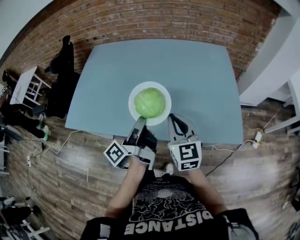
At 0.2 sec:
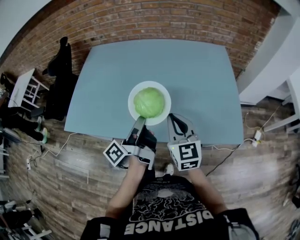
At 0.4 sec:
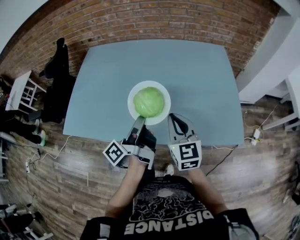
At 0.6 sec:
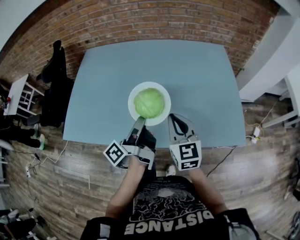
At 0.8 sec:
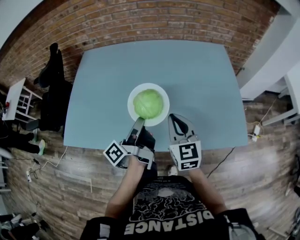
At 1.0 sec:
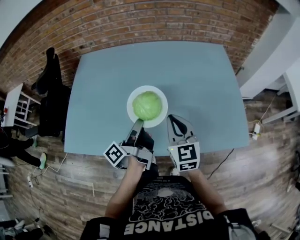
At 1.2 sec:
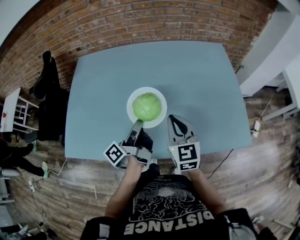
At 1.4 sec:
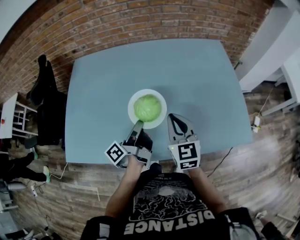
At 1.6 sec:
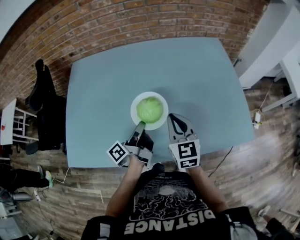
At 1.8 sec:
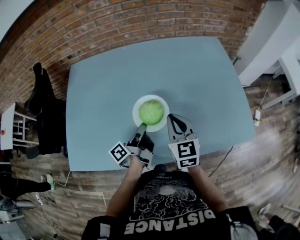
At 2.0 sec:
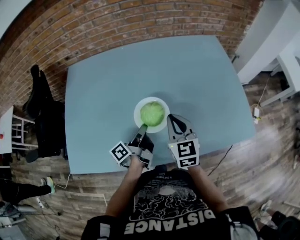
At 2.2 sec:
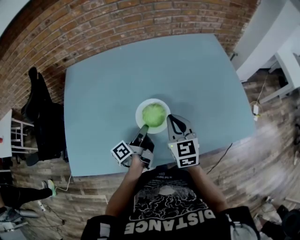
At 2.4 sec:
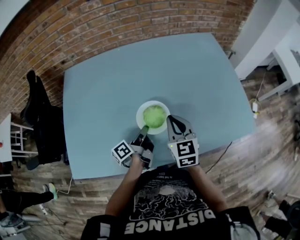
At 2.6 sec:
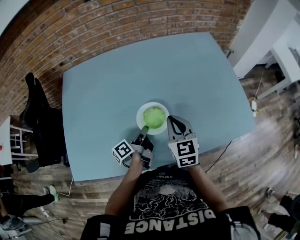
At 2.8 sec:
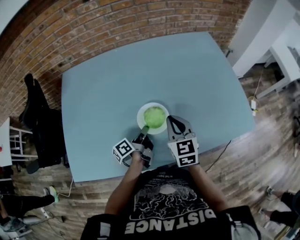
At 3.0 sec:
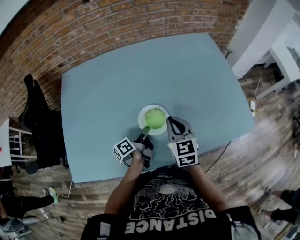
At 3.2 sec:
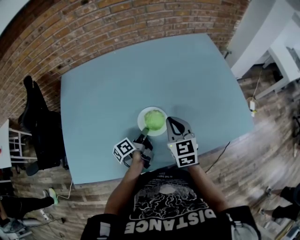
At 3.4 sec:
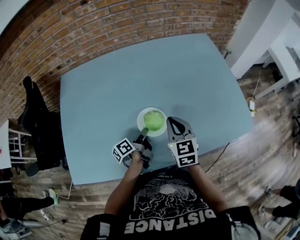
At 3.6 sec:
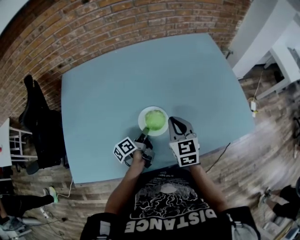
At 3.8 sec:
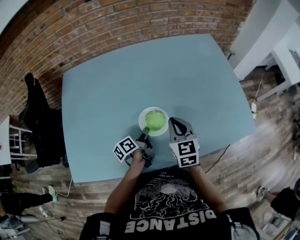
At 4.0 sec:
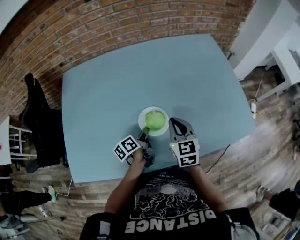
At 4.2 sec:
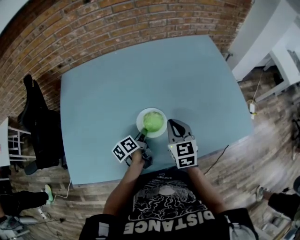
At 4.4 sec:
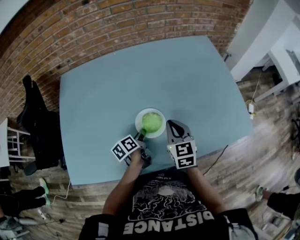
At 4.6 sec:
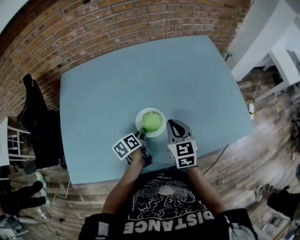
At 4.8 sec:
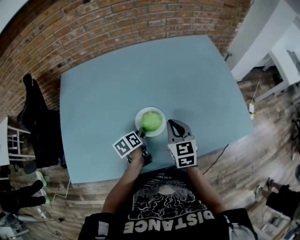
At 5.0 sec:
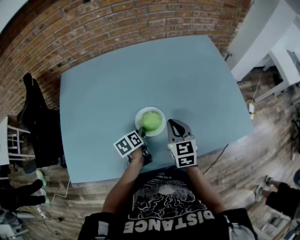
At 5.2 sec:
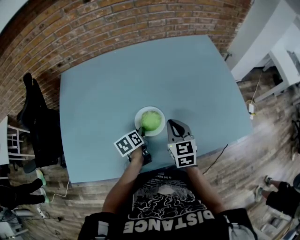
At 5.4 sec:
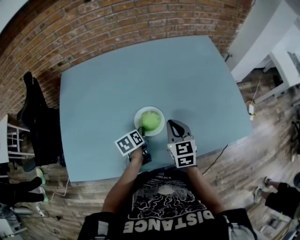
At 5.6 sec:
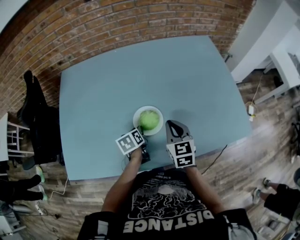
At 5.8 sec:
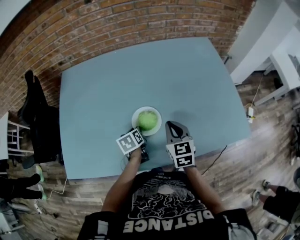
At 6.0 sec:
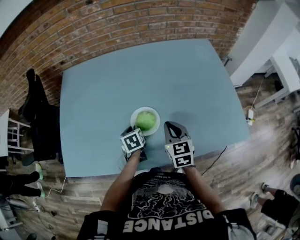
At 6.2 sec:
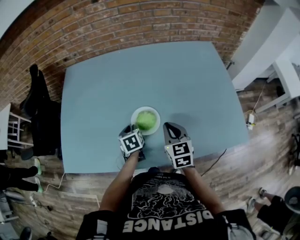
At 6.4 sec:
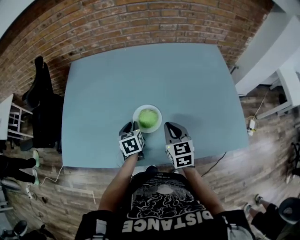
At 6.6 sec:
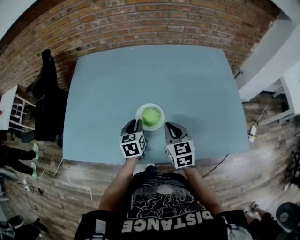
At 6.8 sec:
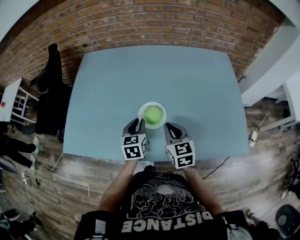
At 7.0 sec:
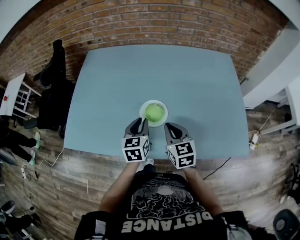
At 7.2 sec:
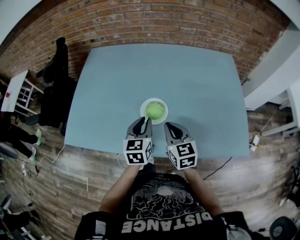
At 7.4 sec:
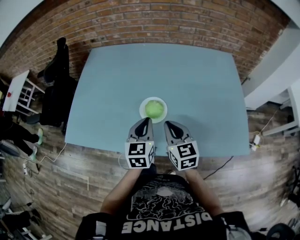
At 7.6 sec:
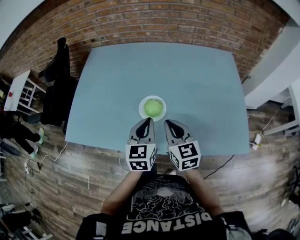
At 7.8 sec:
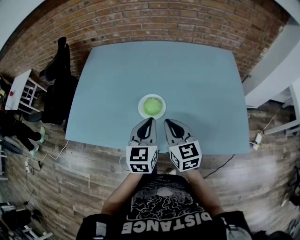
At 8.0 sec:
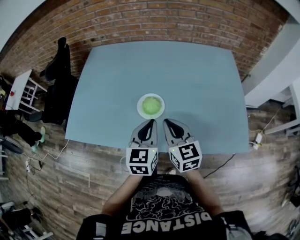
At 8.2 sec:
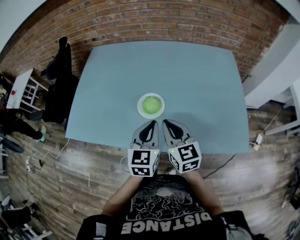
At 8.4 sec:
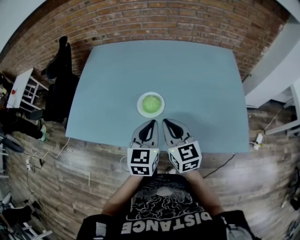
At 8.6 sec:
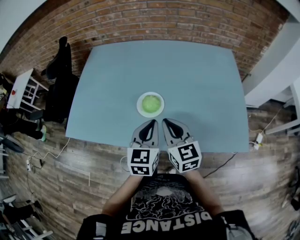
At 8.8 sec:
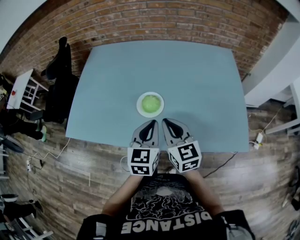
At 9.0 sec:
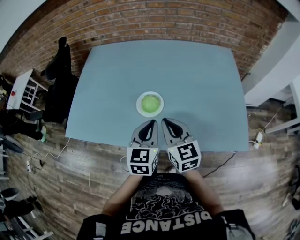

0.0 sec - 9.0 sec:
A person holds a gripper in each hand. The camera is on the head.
0.0 sec - 1.6 sec: The right gripper shifts by about 15 cm.
1.6 sec - 3.0 sec: The right gripper ends up some 5 cm from where it was.
6.0 sec - 7.6 sec: The right gripper heads upward, covering approximately 5 cm, and rotates about 20 degrees.

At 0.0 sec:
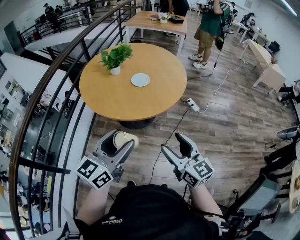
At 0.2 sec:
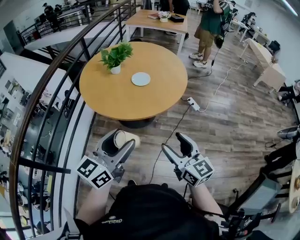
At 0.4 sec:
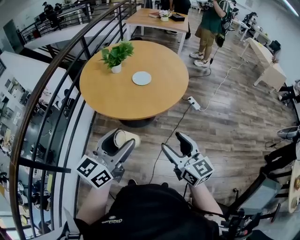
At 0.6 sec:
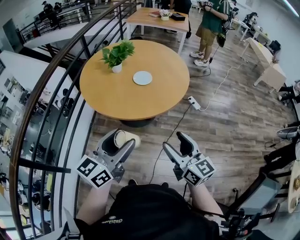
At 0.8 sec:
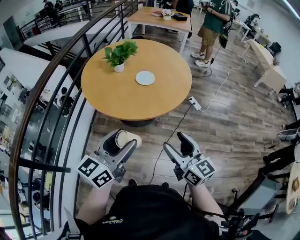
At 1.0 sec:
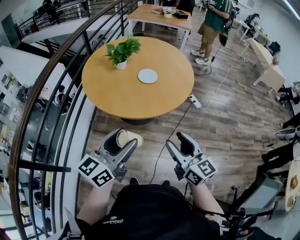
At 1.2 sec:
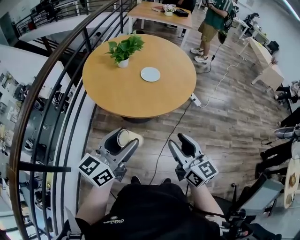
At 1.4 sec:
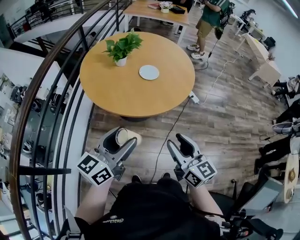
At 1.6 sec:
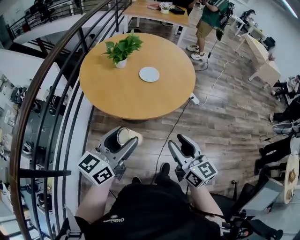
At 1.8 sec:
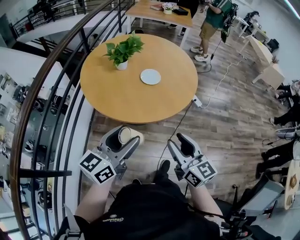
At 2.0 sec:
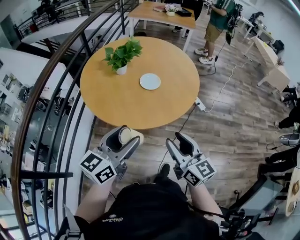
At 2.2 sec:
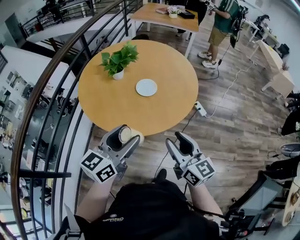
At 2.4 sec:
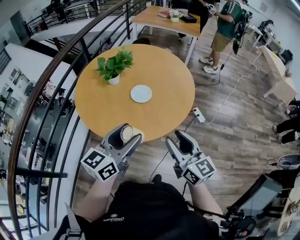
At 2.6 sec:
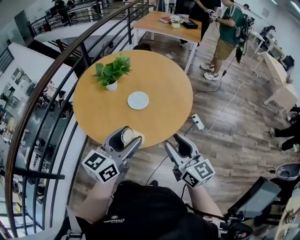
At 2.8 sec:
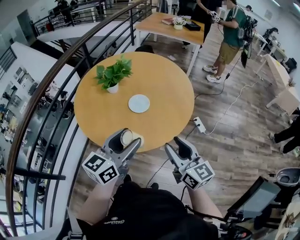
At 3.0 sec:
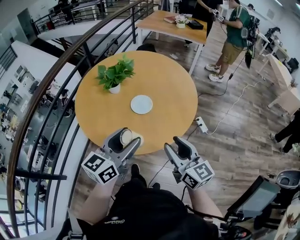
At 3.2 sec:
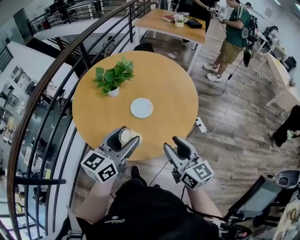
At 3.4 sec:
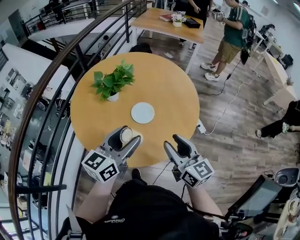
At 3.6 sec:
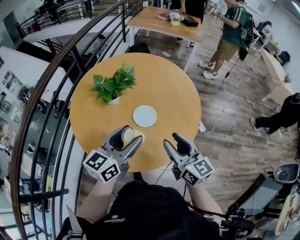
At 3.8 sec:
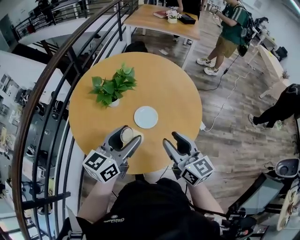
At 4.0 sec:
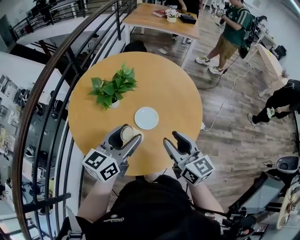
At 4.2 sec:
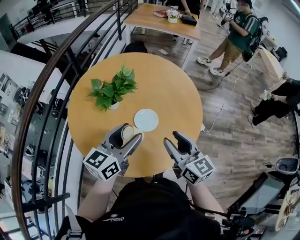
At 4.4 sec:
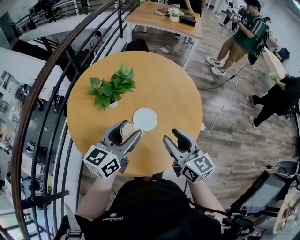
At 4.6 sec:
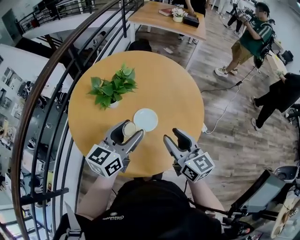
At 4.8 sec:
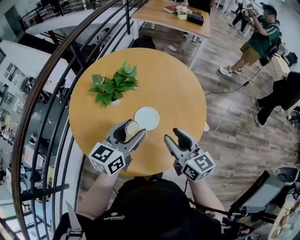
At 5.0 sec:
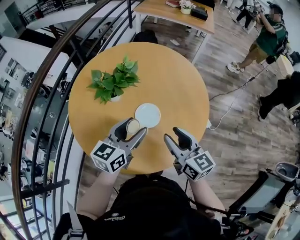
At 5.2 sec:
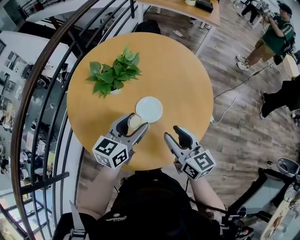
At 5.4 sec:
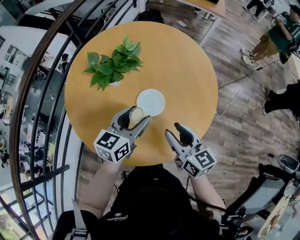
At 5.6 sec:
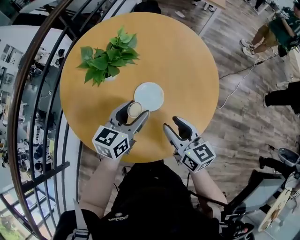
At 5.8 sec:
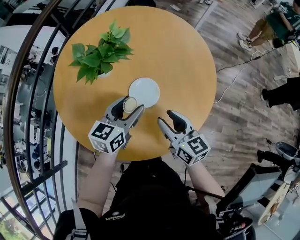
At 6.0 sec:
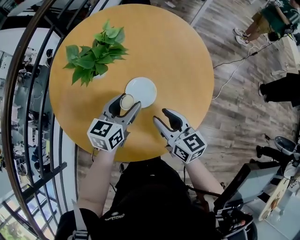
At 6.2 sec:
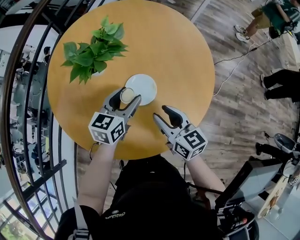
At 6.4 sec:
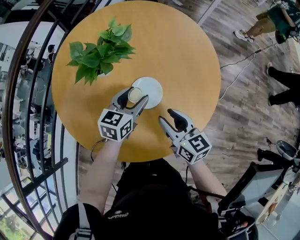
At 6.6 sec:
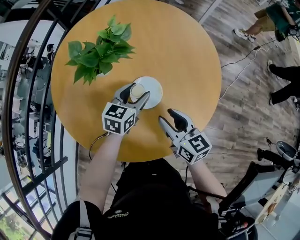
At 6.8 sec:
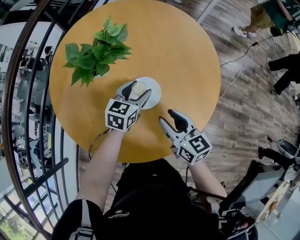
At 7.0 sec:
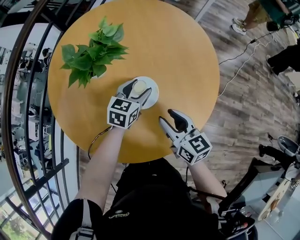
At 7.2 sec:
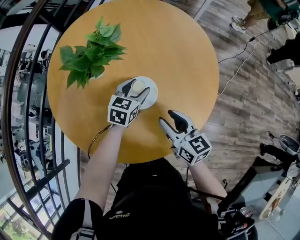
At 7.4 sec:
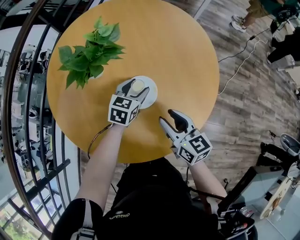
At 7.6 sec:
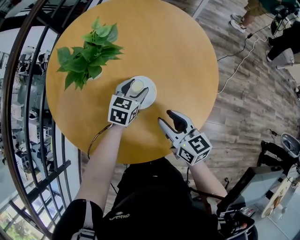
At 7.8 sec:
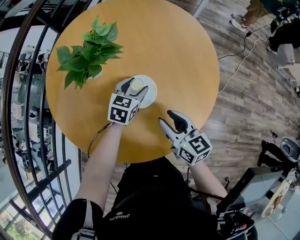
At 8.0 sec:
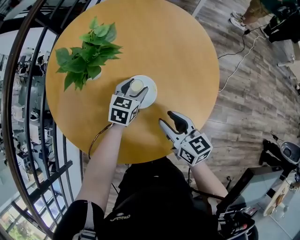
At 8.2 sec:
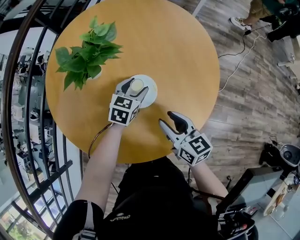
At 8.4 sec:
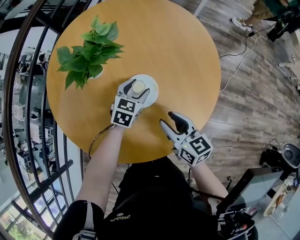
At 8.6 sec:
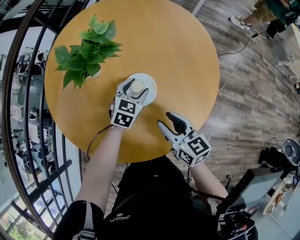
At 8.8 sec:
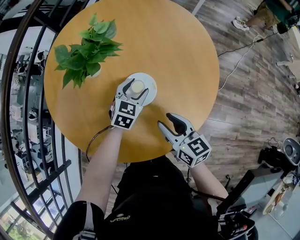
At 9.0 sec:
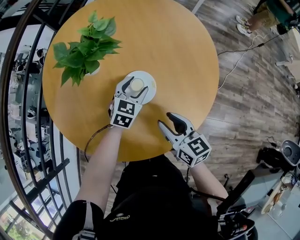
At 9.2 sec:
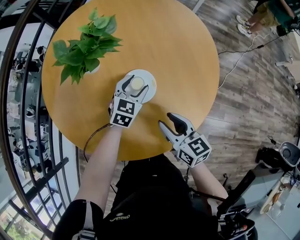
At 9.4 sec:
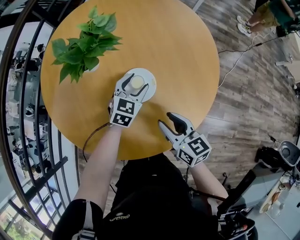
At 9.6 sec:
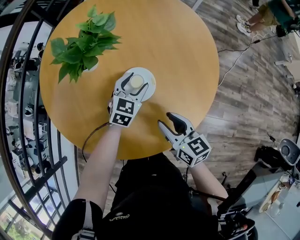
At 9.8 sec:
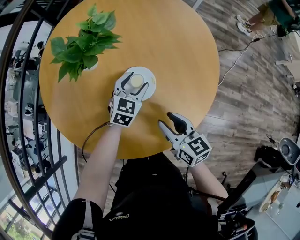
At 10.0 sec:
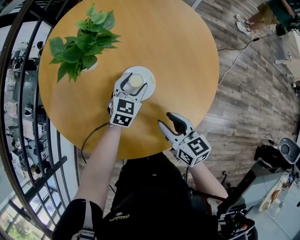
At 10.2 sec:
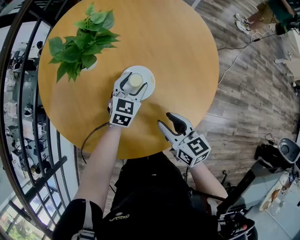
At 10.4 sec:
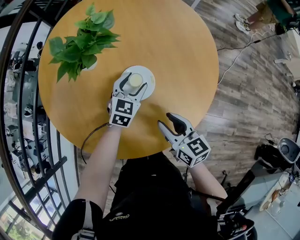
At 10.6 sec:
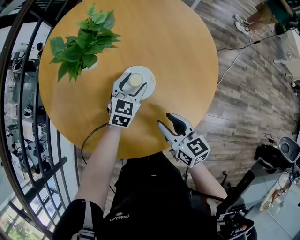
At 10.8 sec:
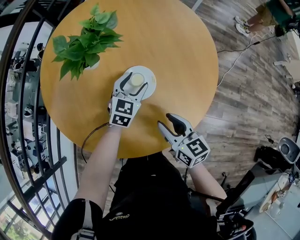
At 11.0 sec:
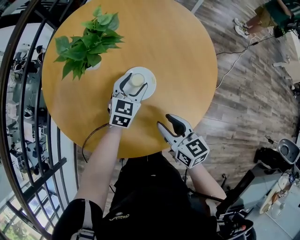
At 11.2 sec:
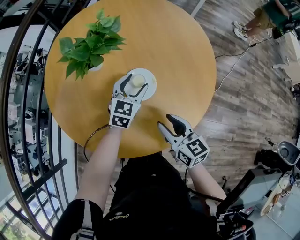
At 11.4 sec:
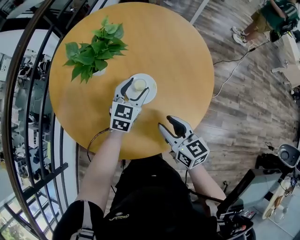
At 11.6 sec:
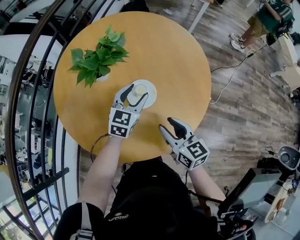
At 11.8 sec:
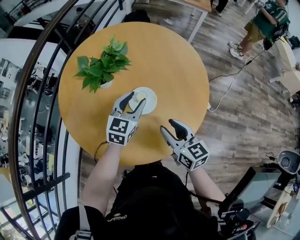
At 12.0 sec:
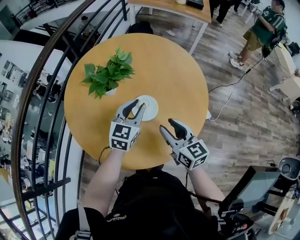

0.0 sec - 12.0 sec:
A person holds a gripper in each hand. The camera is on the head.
0.0 sec - 1.6 sec: The left gripper moves to the left and forward, roughly 15 cm; the right gripper heads to the left, covering about 10 cm, and closes up.
1.6 sec - 3.0 sec: Both grippers travel together forward and to the right, about 25 cm.
3.0 sec - 4.4 sec: The grippers both shift forward and to the left by approximately 20 cm.
4.4 sec - 6.0 sec: The two grippers go about 20 cm downward and forward.
6.0 sec - 7.6 sec: The left gripper goes about 15 cm downward, forward and to the right, and rotates some 20 degrees.
7.6 sec - 10.4 sec: The grippers make only small movements.
10.4 sec - 12.0 sec: The grippers both shift upward by some 15 cm. The left gripper closes.

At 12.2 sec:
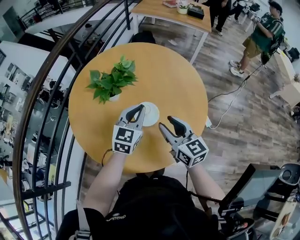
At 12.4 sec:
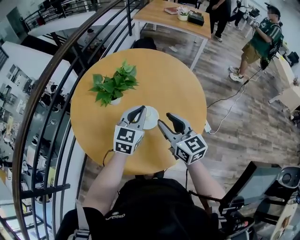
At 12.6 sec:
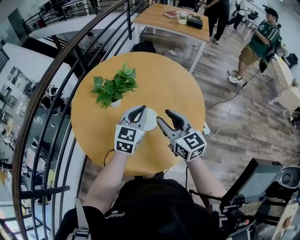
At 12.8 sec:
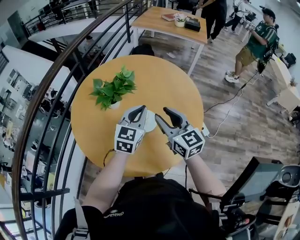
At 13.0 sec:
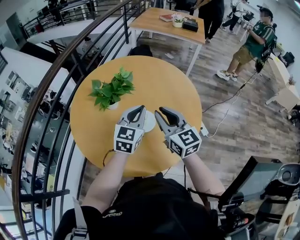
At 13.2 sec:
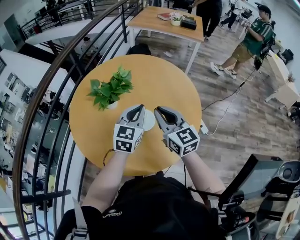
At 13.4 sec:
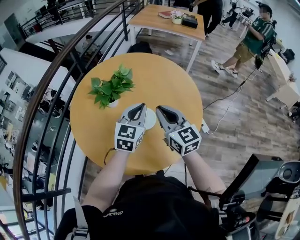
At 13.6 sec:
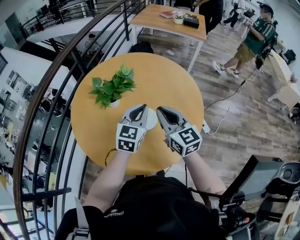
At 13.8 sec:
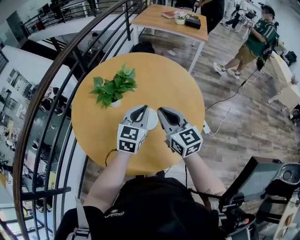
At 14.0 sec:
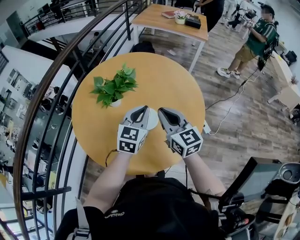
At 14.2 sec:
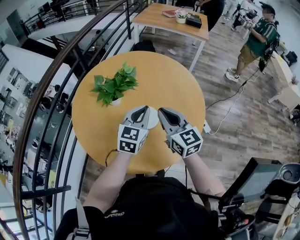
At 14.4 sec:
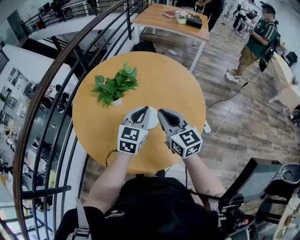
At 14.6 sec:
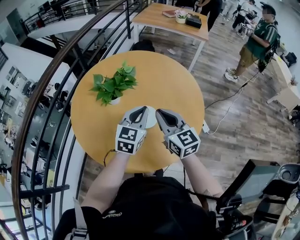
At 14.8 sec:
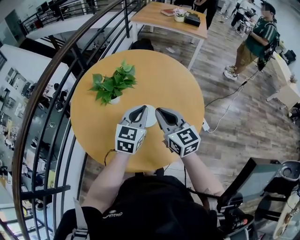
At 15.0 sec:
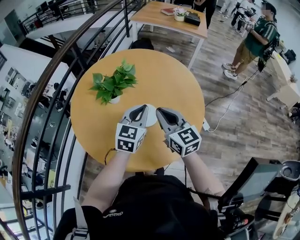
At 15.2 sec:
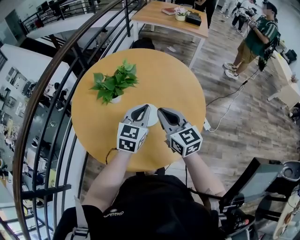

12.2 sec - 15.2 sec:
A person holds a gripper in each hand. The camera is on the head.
12.2 sec - 13.8 sec: The right gripper is displaced upward by roughly 5 cm, and closes up.
13.8 sec - 15.2 sec: The grippers stay close to where they were, moving slightly.
